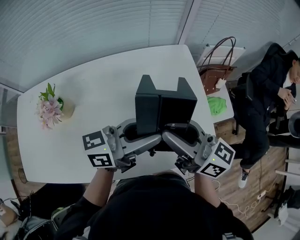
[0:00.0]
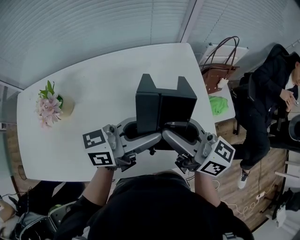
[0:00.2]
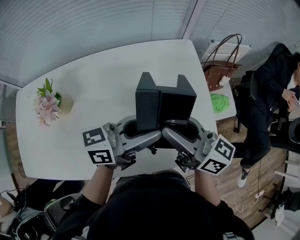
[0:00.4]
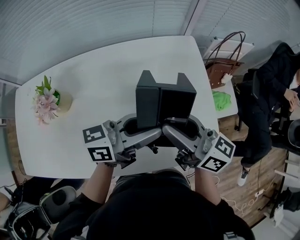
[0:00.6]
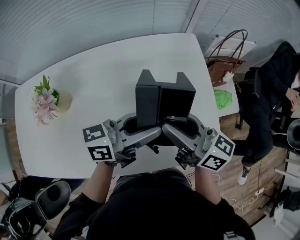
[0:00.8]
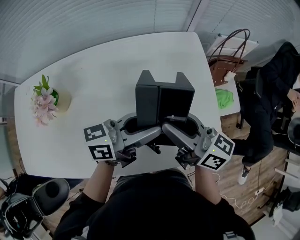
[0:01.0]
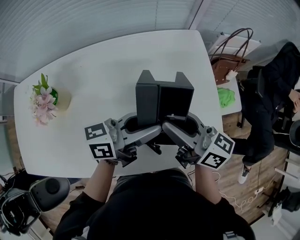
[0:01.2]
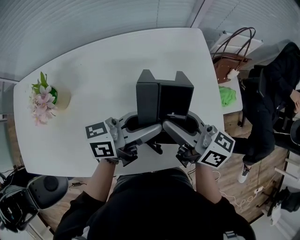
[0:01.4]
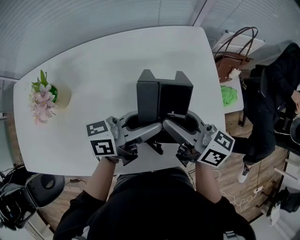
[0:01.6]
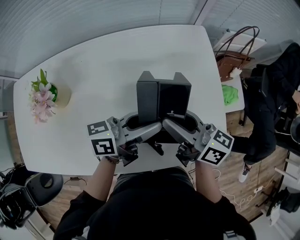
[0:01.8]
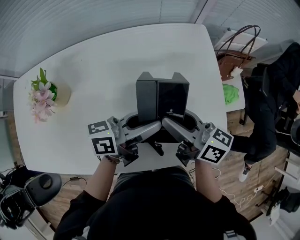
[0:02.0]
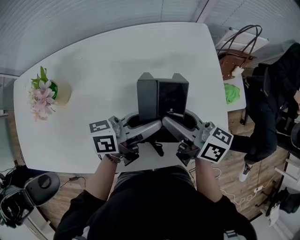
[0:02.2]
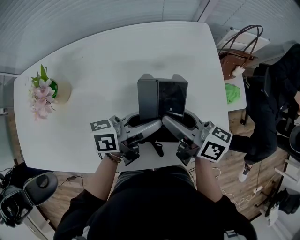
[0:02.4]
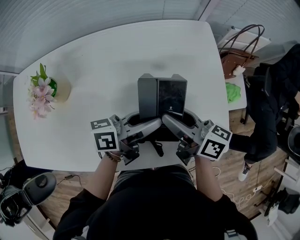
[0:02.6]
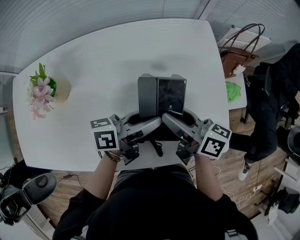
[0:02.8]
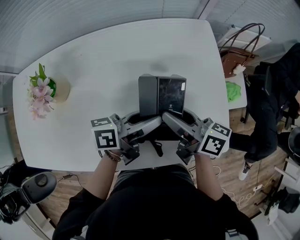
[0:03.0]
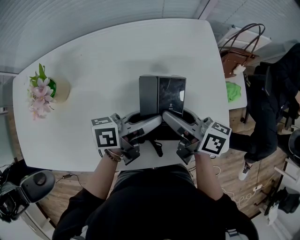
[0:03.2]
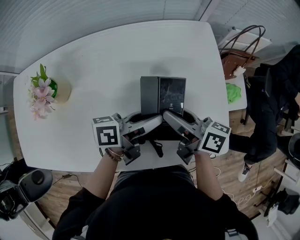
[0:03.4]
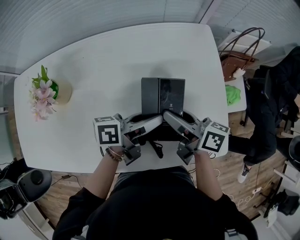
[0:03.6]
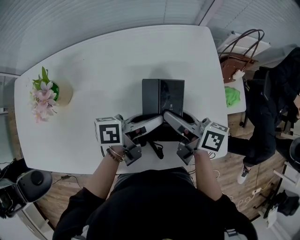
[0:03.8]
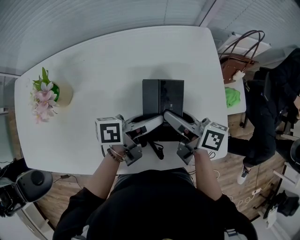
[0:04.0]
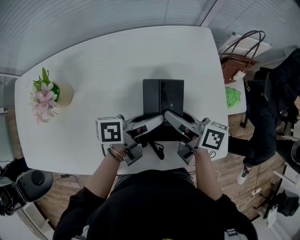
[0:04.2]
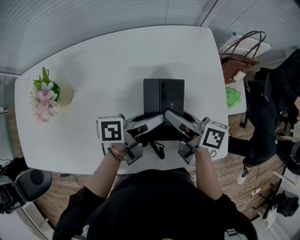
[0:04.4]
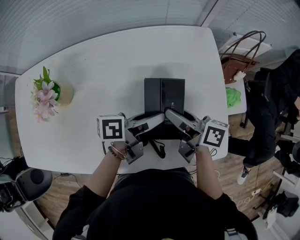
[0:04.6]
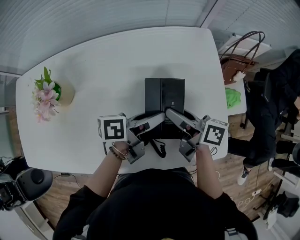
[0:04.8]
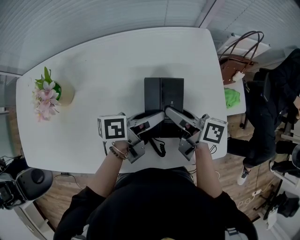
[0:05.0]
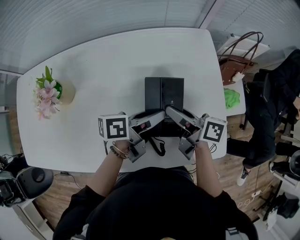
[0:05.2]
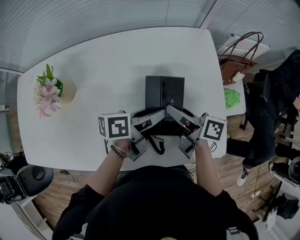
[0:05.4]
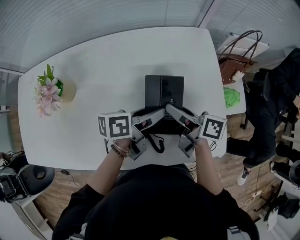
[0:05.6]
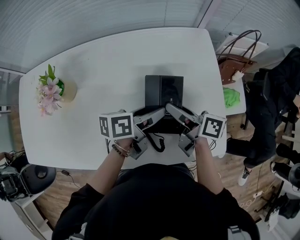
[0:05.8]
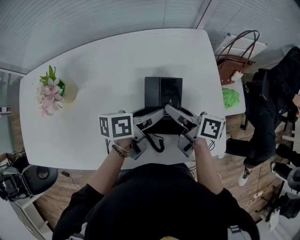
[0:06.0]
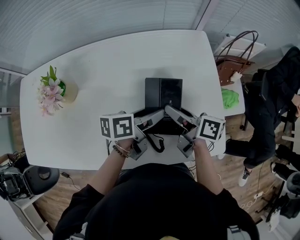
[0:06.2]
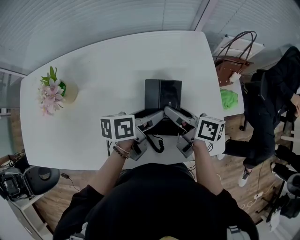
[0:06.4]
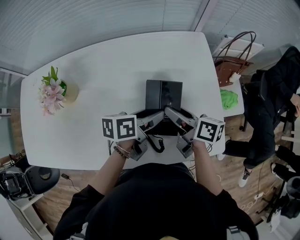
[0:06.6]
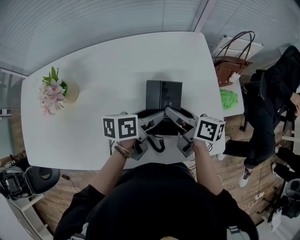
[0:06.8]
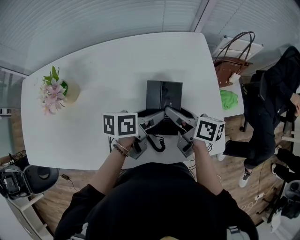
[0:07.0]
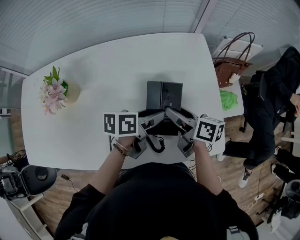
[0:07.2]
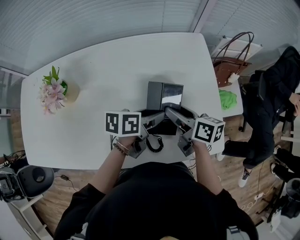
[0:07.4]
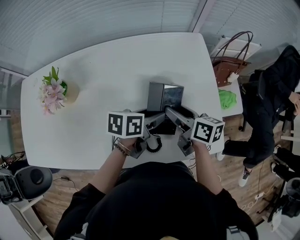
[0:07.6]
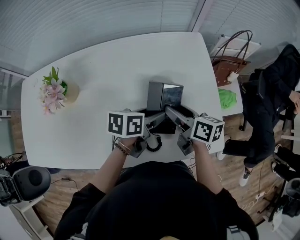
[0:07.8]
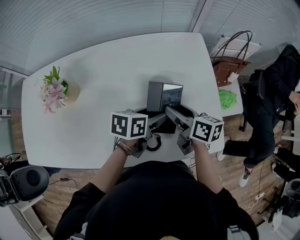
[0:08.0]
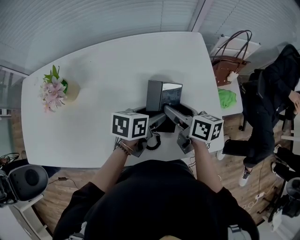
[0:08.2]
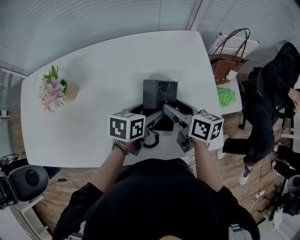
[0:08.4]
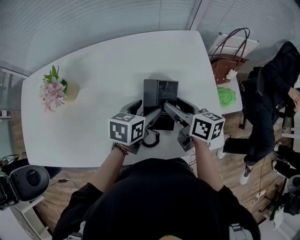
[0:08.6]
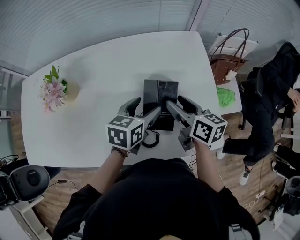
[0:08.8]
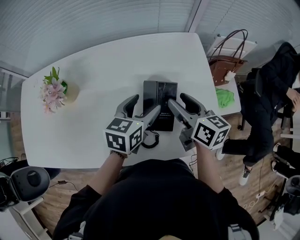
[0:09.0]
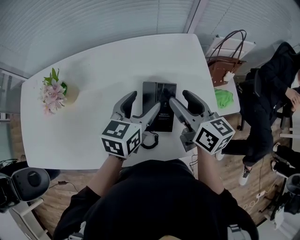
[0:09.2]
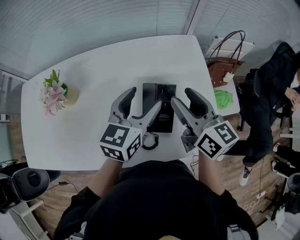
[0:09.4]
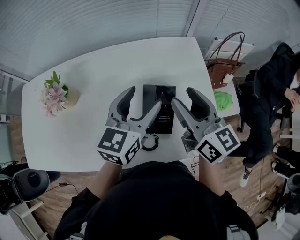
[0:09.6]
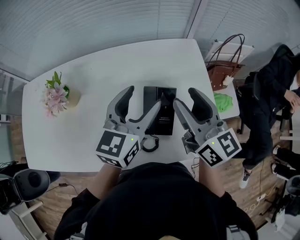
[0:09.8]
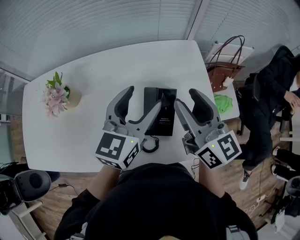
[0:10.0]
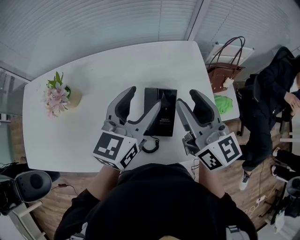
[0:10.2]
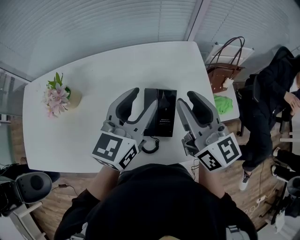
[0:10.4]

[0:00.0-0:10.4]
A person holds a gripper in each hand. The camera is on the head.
0:00.0 to 0:01.4: Both grippers travel together downward, some 10 cm.
0:01.4 to 0:03.0: The grippers both shift downward by about 5 cm.
0:03.0 to 0:06.0: The grippers stay close to where they were, moving slightly.
0:06.0 to 0:07.4: The grippers make only small movements.
0:07.4 to 0:09.0: The grippers both shift upward by roughly 5 cm. The left gripper rotates roughly 40 degrees.
0:09.0 to 0:10.4: Both grippers travel together upward, roughly 15 cm. The right gripper turns by roughly 30 degrees, and closes up; the left gripper changes its angle by some 30 degrees.

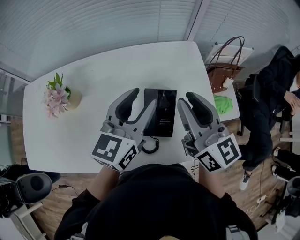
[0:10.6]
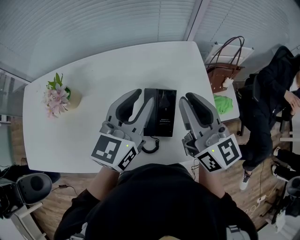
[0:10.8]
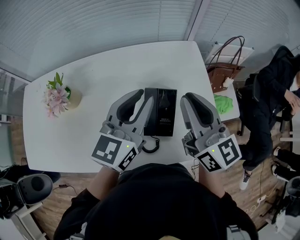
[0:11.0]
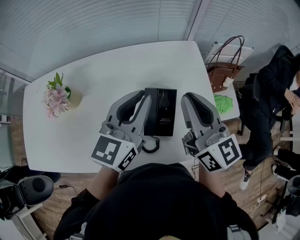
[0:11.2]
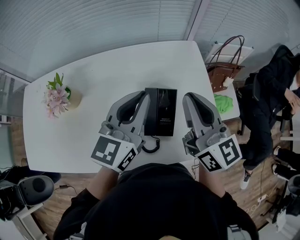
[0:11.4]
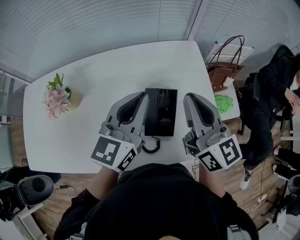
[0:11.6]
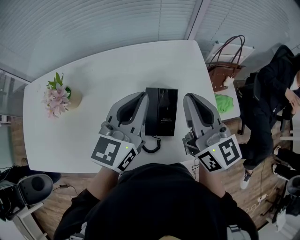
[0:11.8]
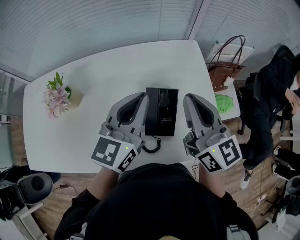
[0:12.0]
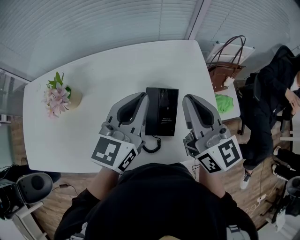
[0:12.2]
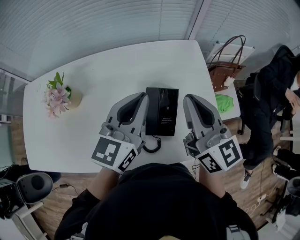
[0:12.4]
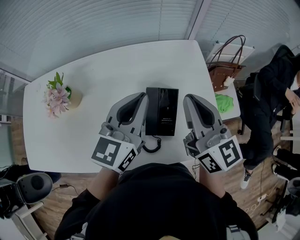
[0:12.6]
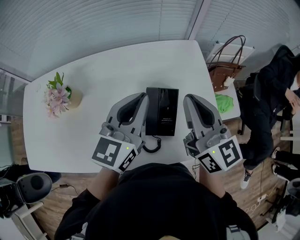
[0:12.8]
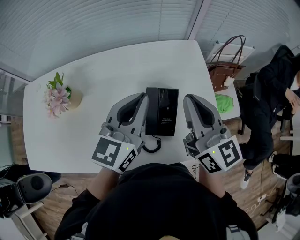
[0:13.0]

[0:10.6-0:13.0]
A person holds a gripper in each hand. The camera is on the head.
0:10.6 to 0:11.8: The left gripper closes up; the right gripper closes up.
0:11.8 to 0:13.0: Both grippers stay put.

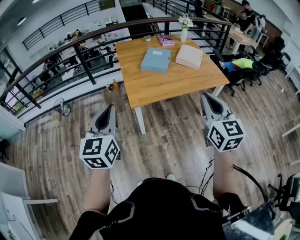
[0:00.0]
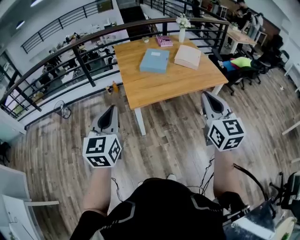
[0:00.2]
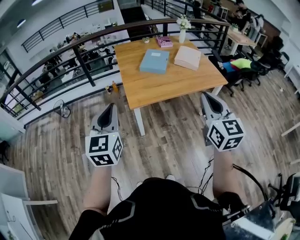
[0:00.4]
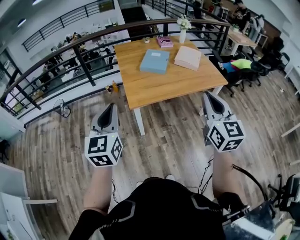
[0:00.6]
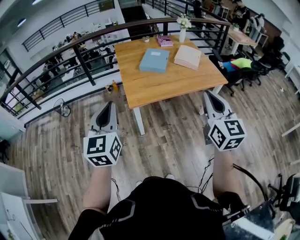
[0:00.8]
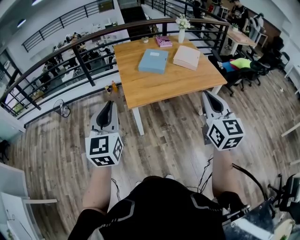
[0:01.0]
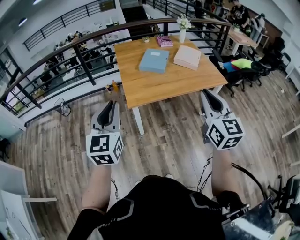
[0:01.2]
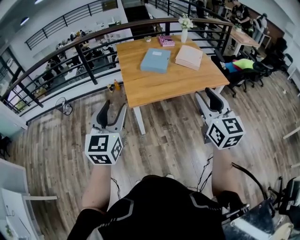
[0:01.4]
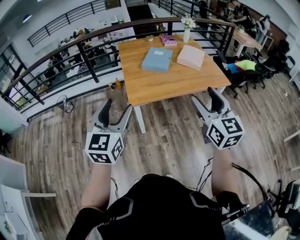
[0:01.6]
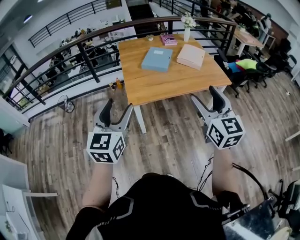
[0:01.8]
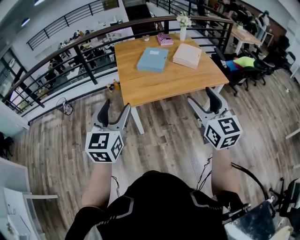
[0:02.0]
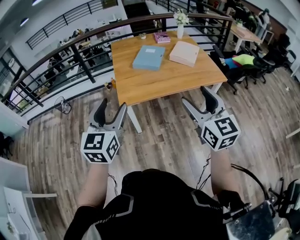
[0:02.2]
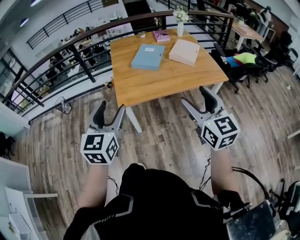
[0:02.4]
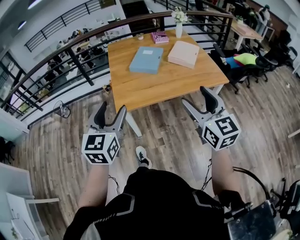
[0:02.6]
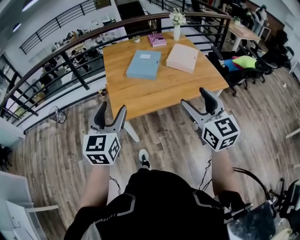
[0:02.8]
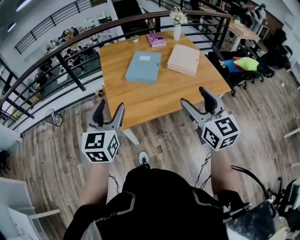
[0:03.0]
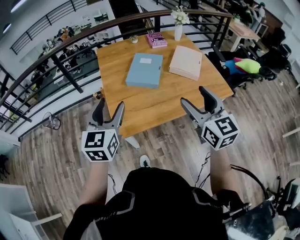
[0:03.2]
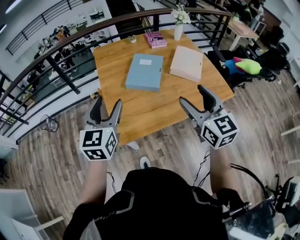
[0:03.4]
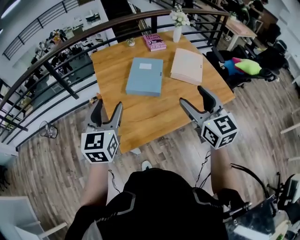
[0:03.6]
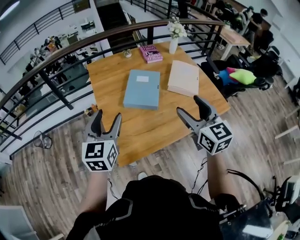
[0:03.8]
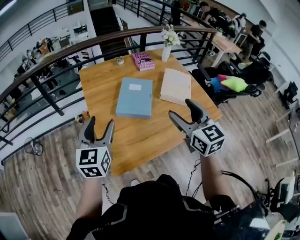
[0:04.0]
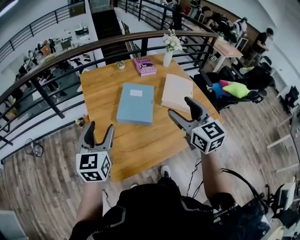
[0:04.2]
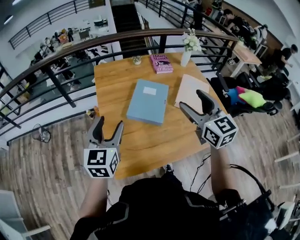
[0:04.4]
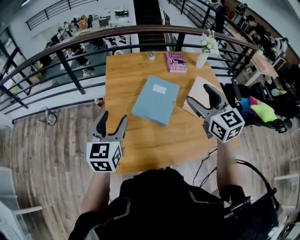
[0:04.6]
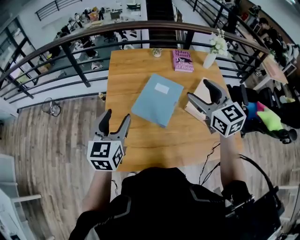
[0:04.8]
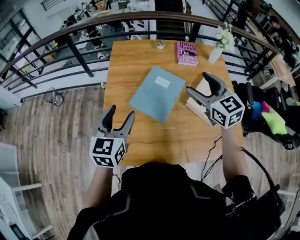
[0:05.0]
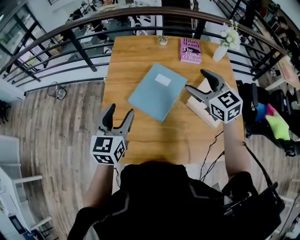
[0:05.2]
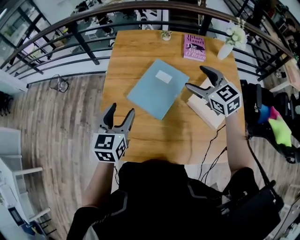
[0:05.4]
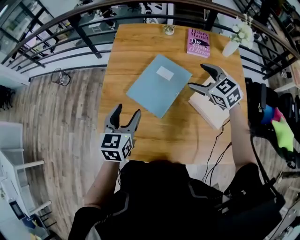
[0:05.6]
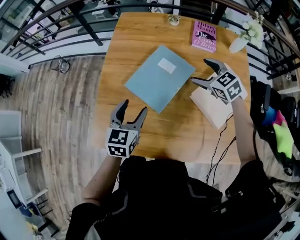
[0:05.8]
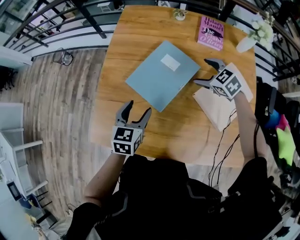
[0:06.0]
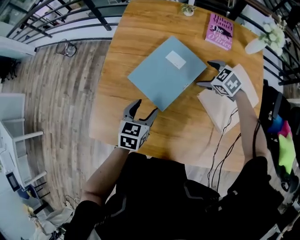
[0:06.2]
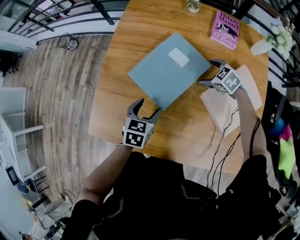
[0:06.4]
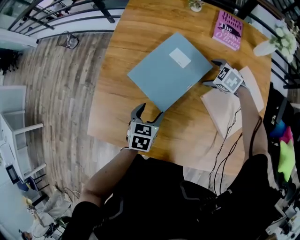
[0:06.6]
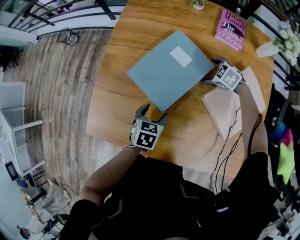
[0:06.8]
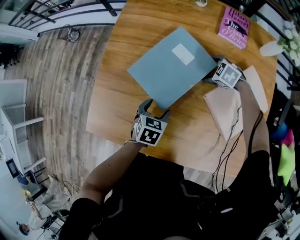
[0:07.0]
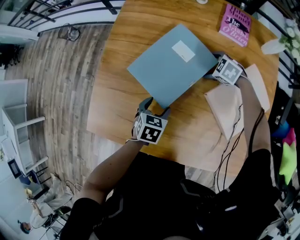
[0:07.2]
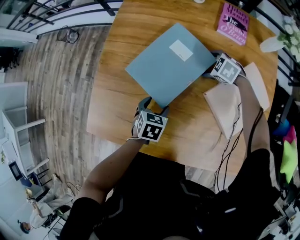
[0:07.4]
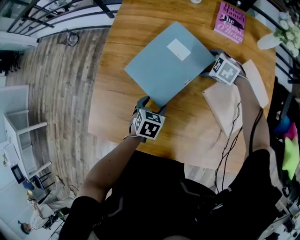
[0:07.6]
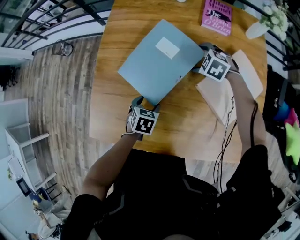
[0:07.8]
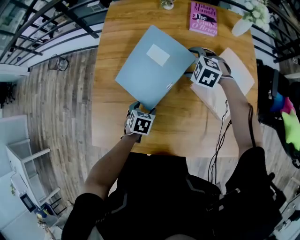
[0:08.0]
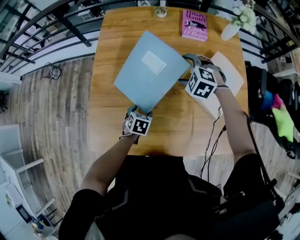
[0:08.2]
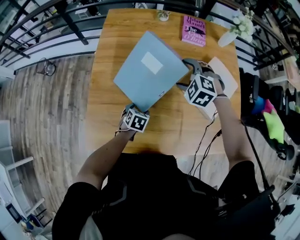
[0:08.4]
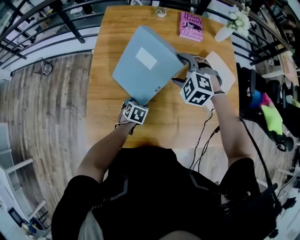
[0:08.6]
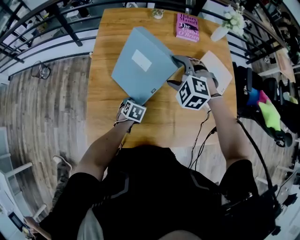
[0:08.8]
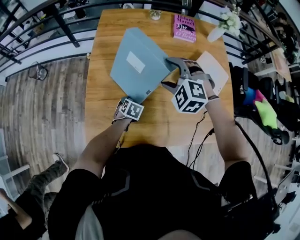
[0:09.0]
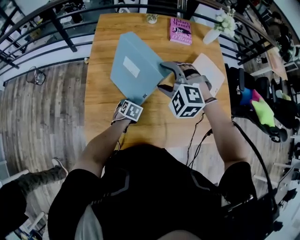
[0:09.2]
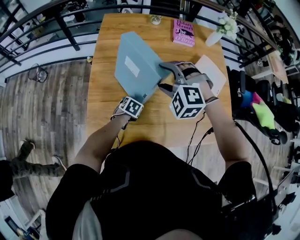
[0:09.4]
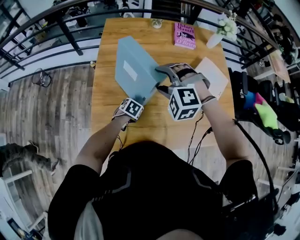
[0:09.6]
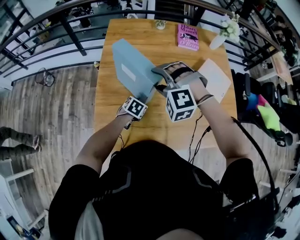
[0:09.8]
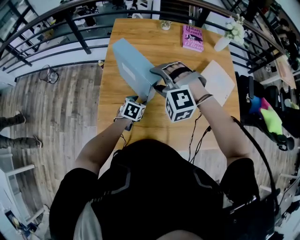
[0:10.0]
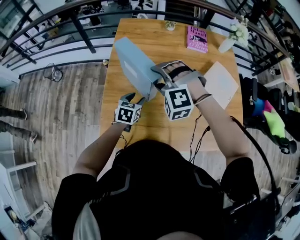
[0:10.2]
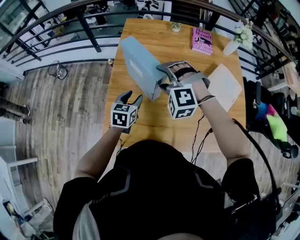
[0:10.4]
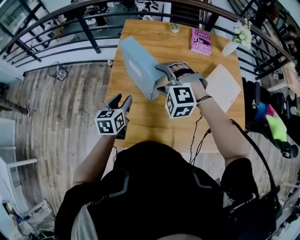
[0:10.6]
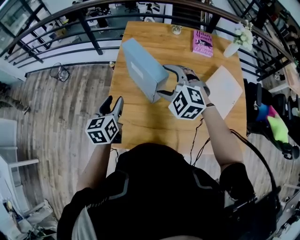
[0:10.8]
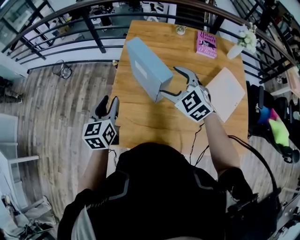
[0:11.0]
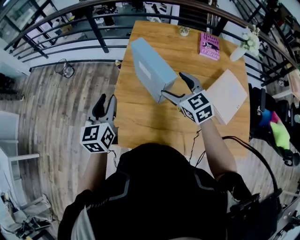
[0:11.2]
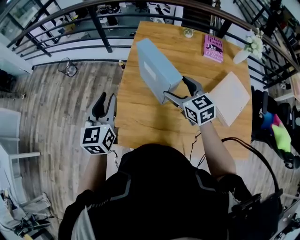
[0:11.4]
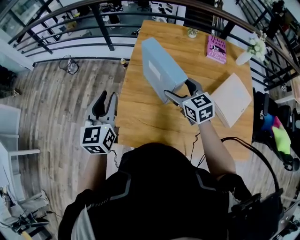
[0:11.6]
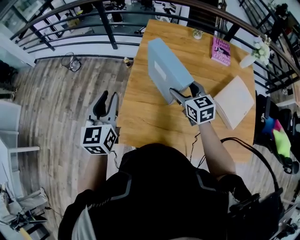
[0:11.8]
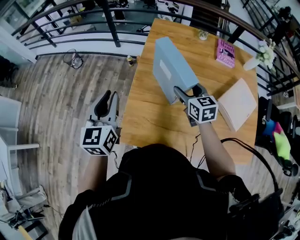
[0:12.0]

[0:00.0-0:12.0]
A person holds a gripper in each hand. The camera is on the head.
0:00.0 to 0:01.6: The right gripper opens, while the left gripper is displaced to the right by about 5 cm, and opens its fingers.
0:01.6 to 0:03.0: The grippers both shift forward by some 20 cm.
0:03.0 to 0:04.4: The grippers both shift forward by roughly 30 cm.
0:04.4 to 0:06.0: Both grippers travel together downward, approximately 25 cm. The left gripper changes its angle by some 30 degrees; the right gripper tilts its fingers some 40 degrees downward.
0:06.0 to 0:07.6: Both grippers travel together downward, some 15 cm. The right gripper changes its angle by roughly 20 degrees. Meanwhile the left gripper changes its angle by about 30 degrees.
0:07.6 to 0:09.0: The left gripper moves approximately 5 cm, while the right gripper travels upward by approximately 25 cm, and turns by about 30 degrees.
0:09.0 to 0:10.4: The left gripper is displaced upward and to the left by roughly 20 cm, and turns by some 30 degrees; the right gripper heads to the left, covering some 10 cm, and rotates some 20 degrees.
0:10.4 to 0:12.0: The left gripper moves to the left and upward, about 25 cm, and changes its angle by roughly 30 degrees. The right gripper rolls clockwise, seen from behind, by some 80 degrees.
